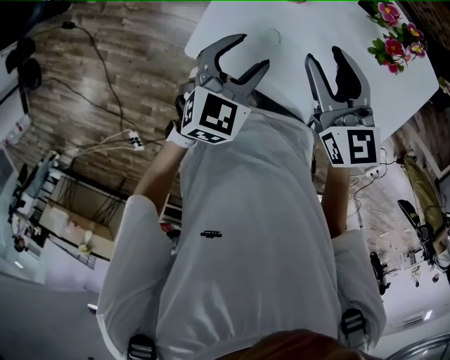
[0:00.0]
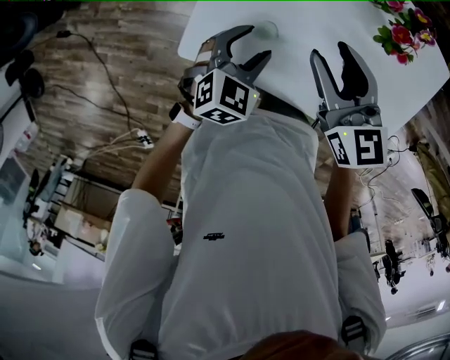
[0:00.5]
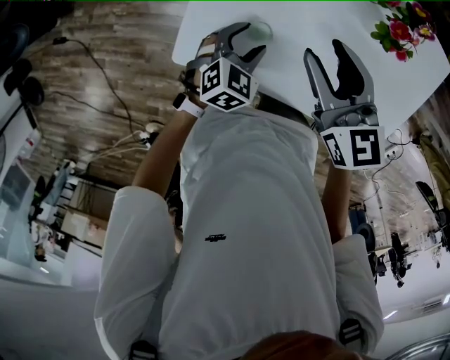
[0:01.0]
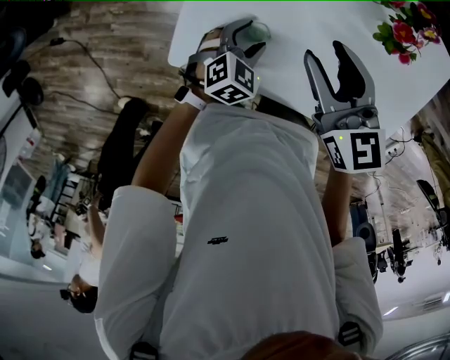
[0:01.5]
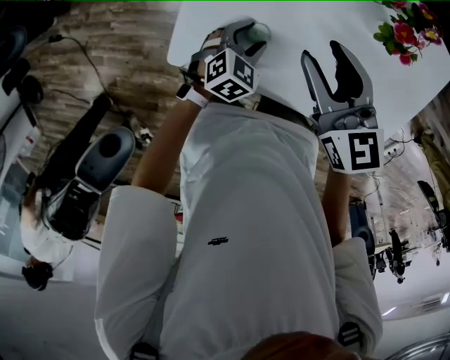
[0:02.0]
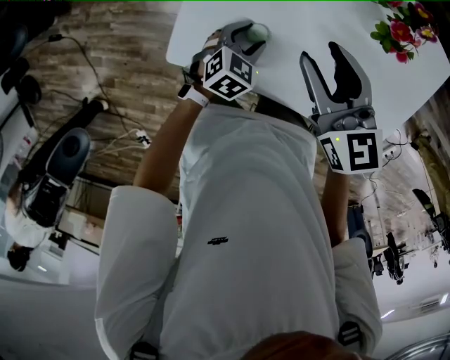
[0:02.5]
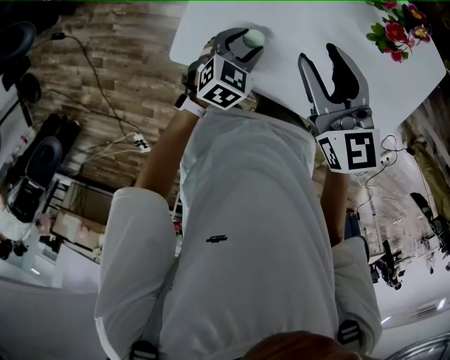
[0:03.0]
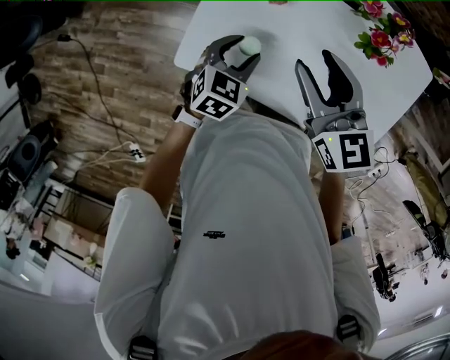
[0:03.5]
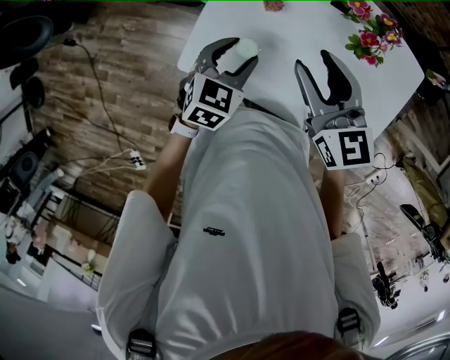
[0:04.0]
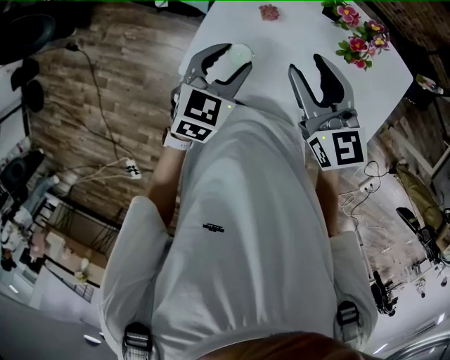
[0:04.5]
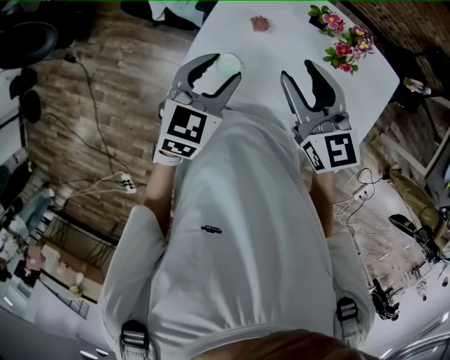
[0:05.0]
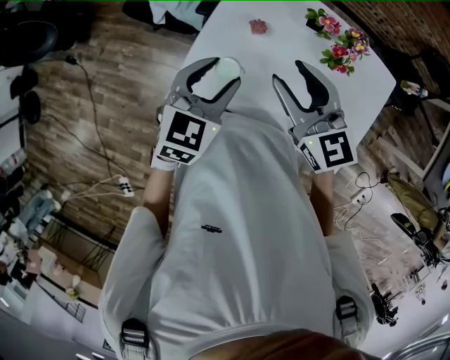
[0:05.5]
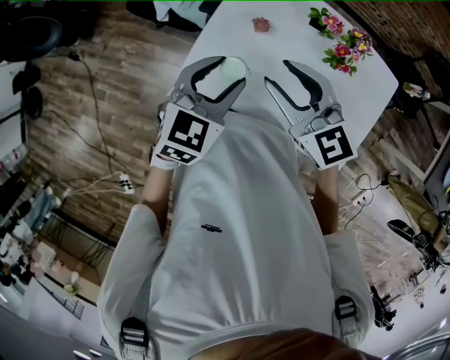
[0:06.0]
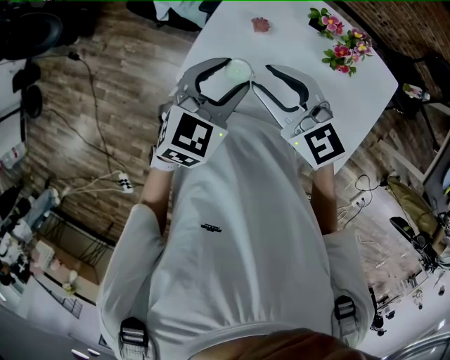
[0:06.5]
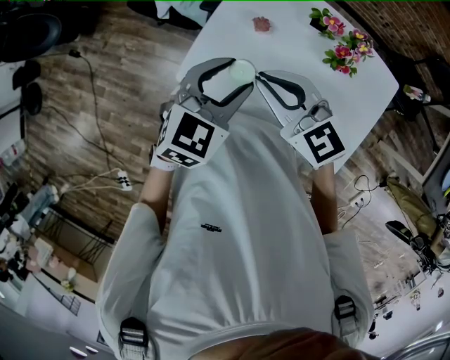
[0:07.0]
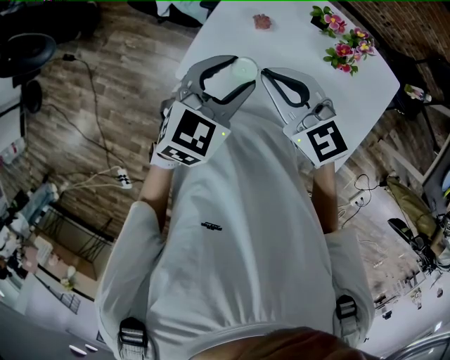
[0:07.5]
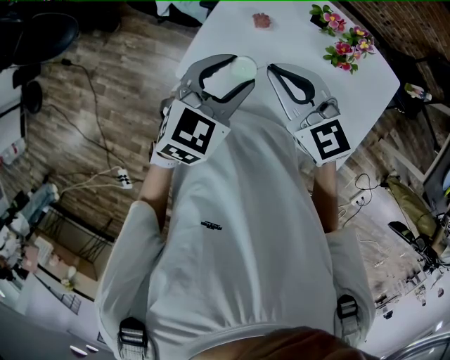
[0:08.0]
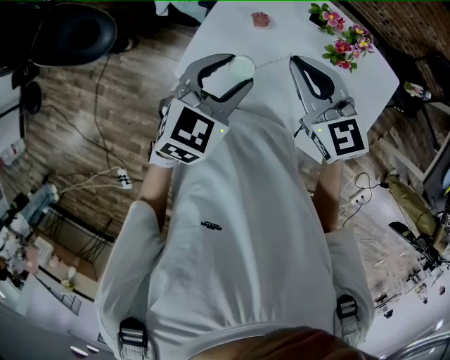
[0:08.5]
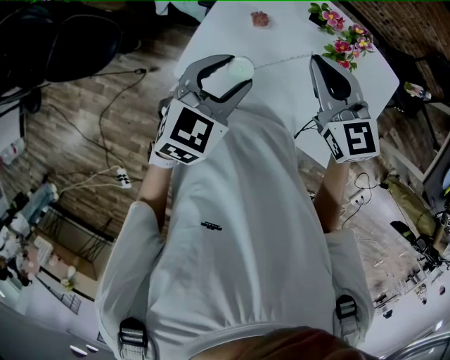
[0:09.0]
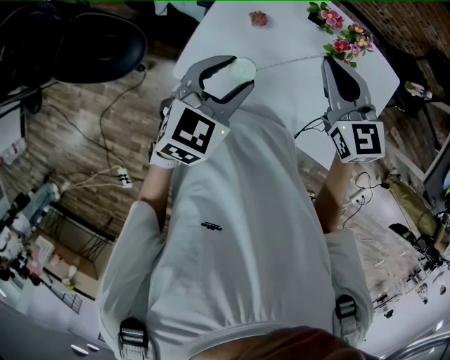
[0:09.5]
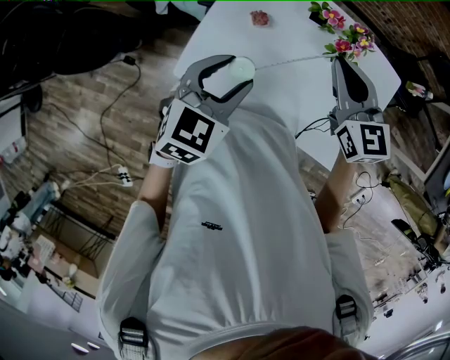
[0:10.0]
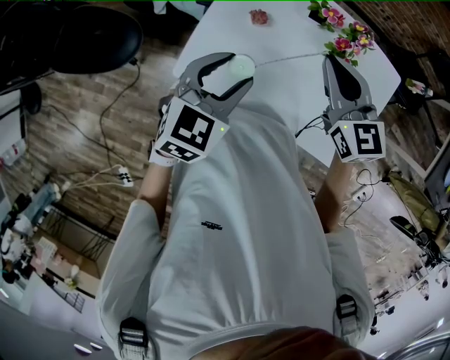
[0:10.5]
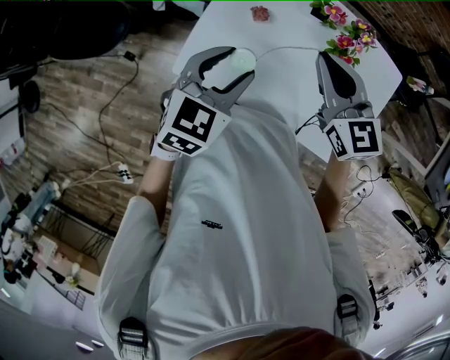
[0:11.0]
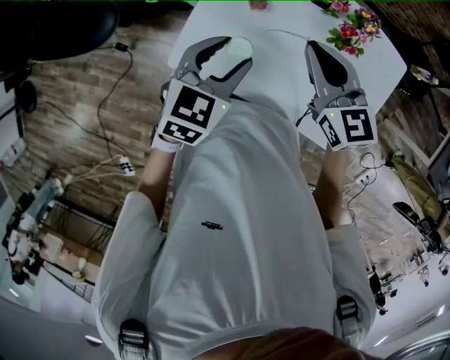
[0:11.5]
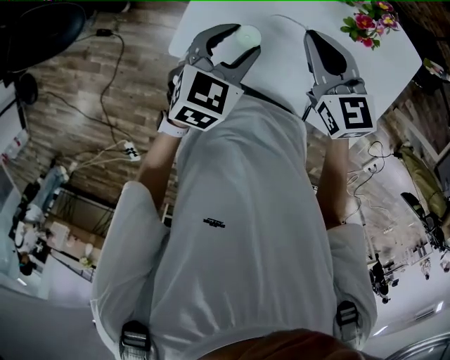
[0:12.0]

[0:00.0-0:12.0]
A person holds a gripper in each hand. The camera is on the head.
0:00.0 to 0:02.0: The left gripper travels downward by about 20 cm, and rotates approximately 20 degrees.
0:02.0 to 0:04.0: The right gripper travels upward by approximately 10 cm; the left gripper moves upward, about 15 cm, and changes its angle by about 20 degrees.
0:04.0 to 0:06.0: The right gripper moves upward and to the left, about 10 cm, and turns by some 20 degrees; the left gripper travels upward by approximately 15 cm.
0:06.0 to 0:08.0: The right gripper closes its fingers.
0:08.0 to 0:10.0: The right gripper heads to the right and forward, covering approximately 15 cm, and swivels some 20 degrees.
0:10.0 to 0:12.0: The left gripper is displaced downward by some 10 cm; the right gripper heads downward and to the left, covering about 10 cm.

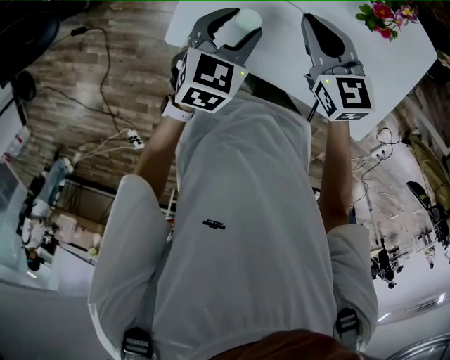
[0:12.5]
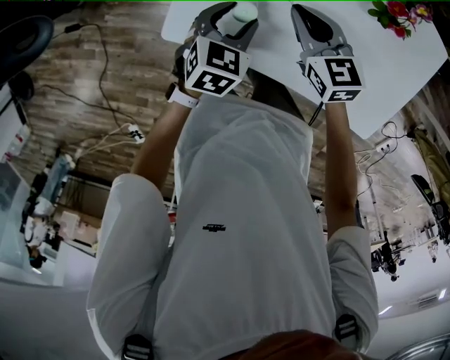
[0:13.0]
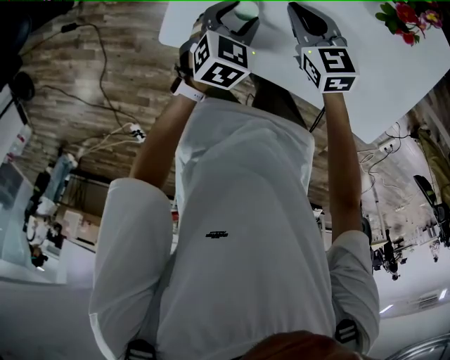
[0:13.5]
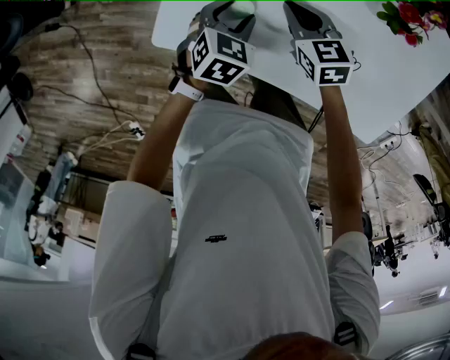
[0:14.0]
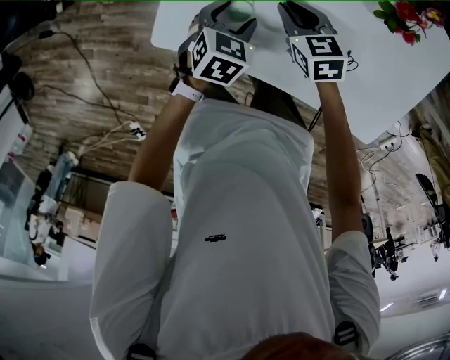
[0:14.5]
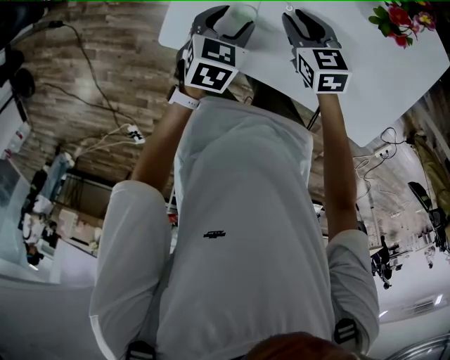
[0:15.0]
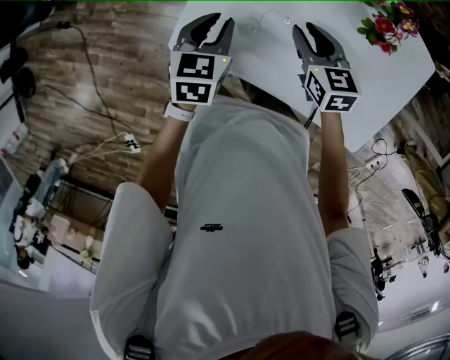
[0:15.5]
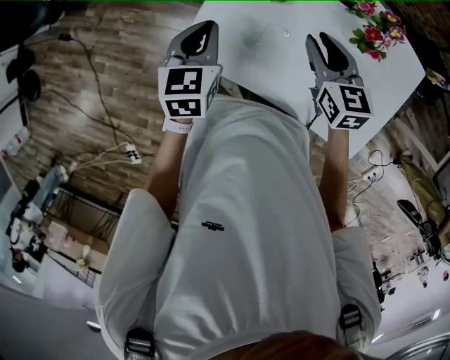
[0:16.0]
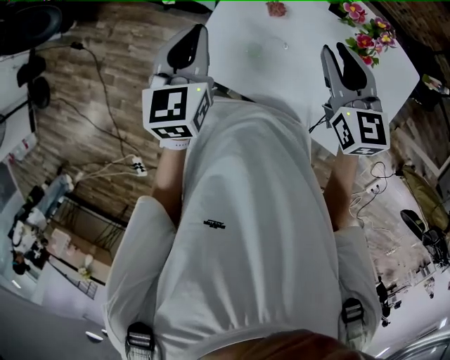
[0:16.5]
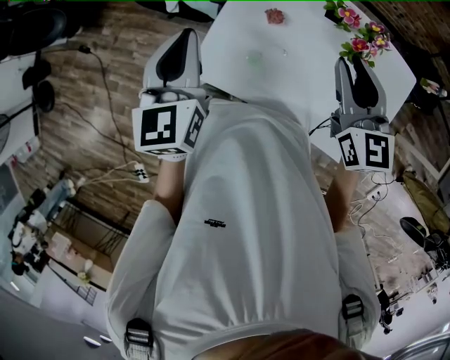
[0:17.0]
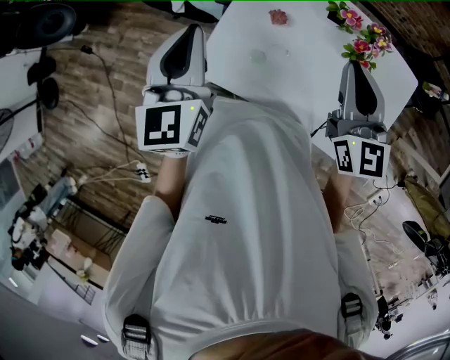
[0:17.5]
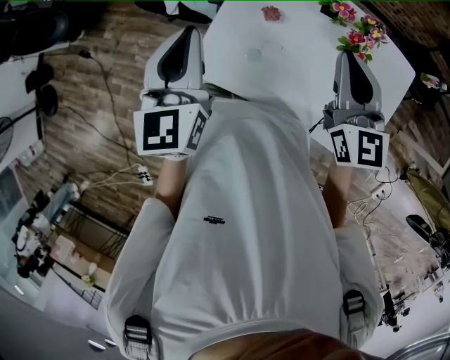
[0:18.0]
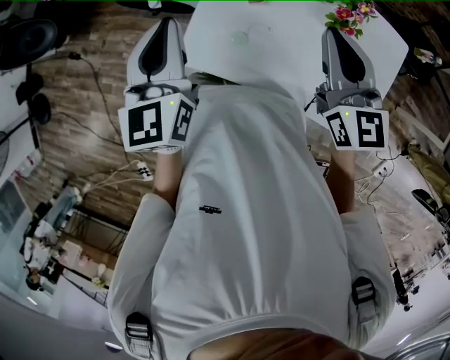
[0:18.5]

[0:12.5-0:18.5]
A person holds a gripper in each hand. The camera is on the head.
0:12.5 to 0:14.5: The two grippers go approximately 15 cm downward.
0:14.5 to 0:16.5: The two grippers go some 30 cm upward. The left gripper tips its fingers upward by approximately 30 degrees, and closes, while the right gripper turns by roughly 30 degrees.
0:16.5 to 0:18.5: Both grippers travel together upward, about 10 cm. The right gripper closes up.

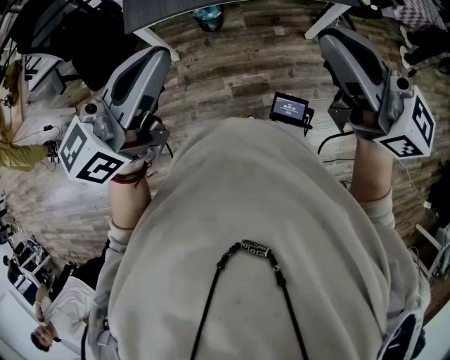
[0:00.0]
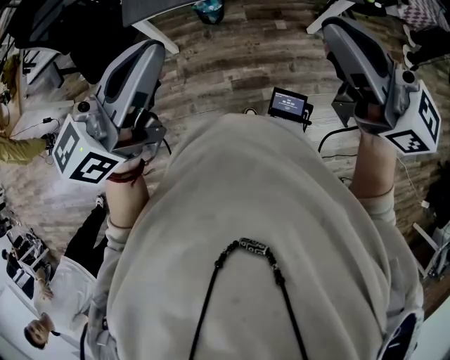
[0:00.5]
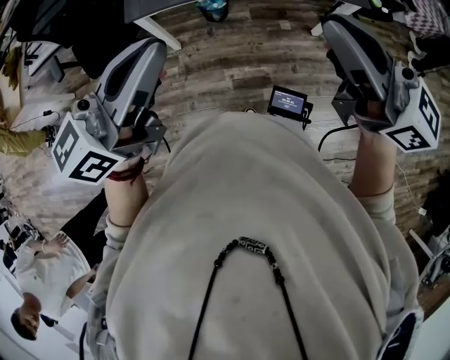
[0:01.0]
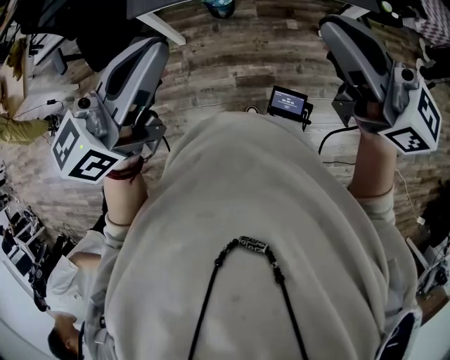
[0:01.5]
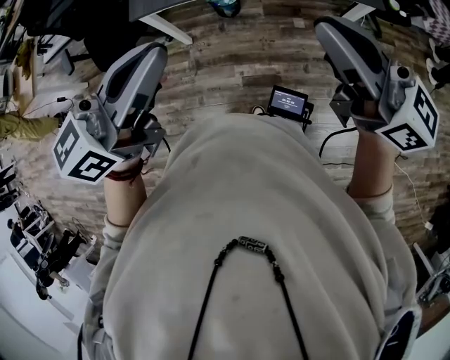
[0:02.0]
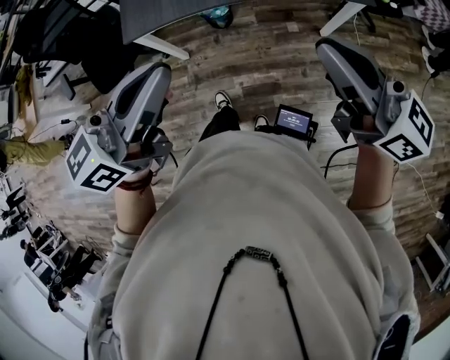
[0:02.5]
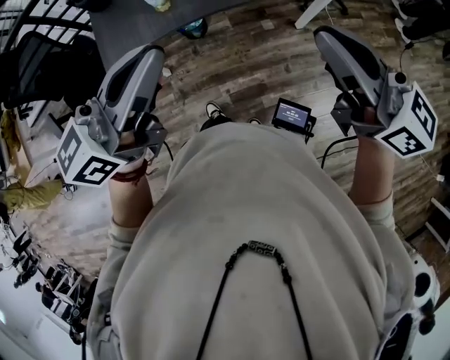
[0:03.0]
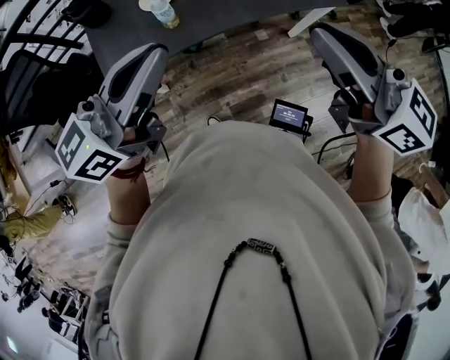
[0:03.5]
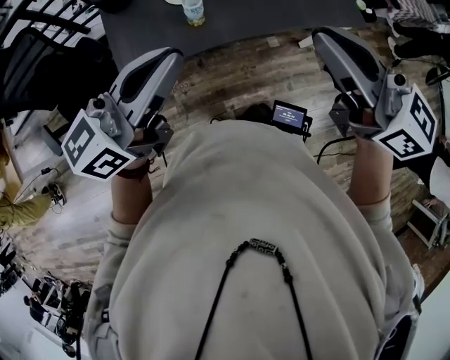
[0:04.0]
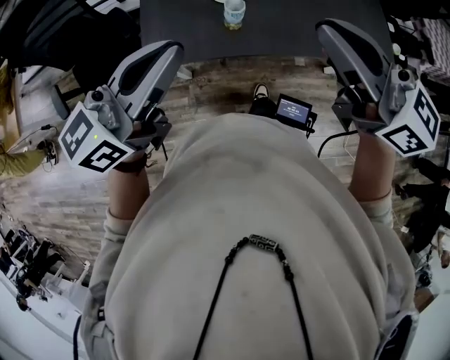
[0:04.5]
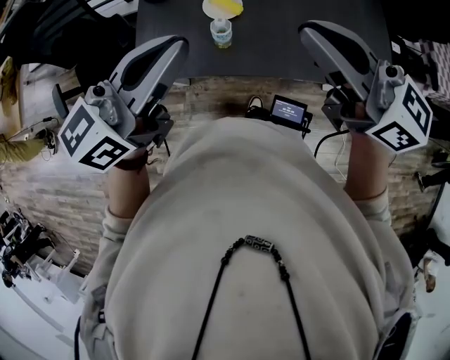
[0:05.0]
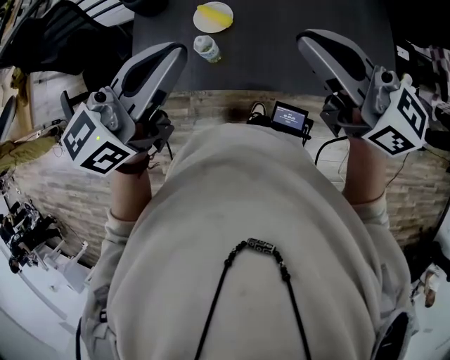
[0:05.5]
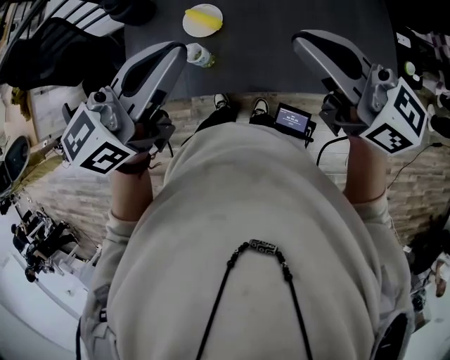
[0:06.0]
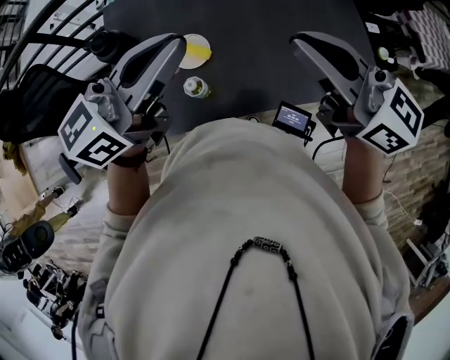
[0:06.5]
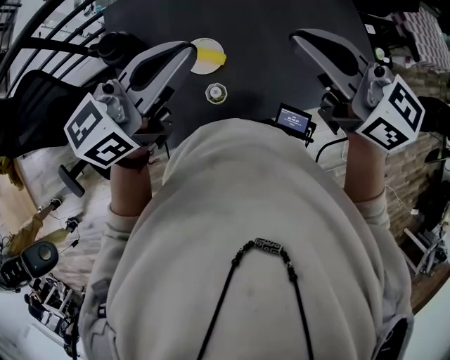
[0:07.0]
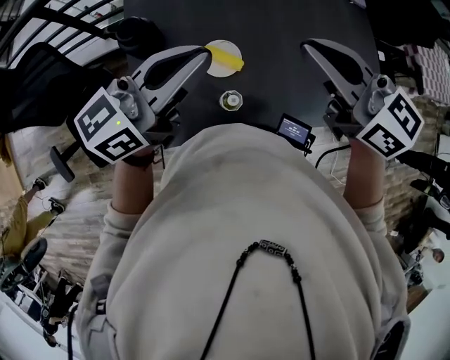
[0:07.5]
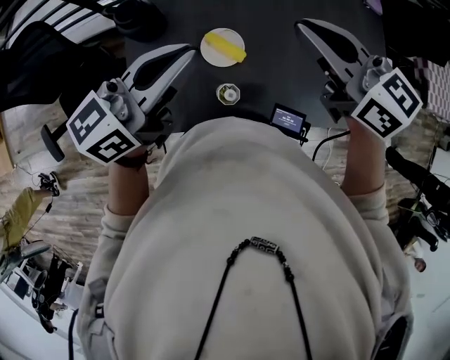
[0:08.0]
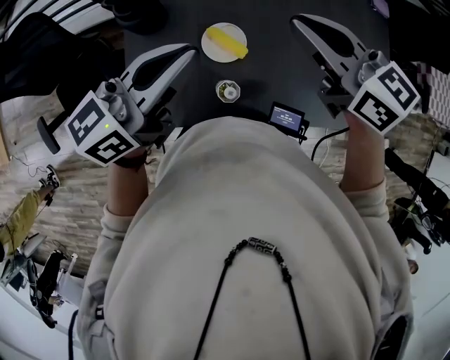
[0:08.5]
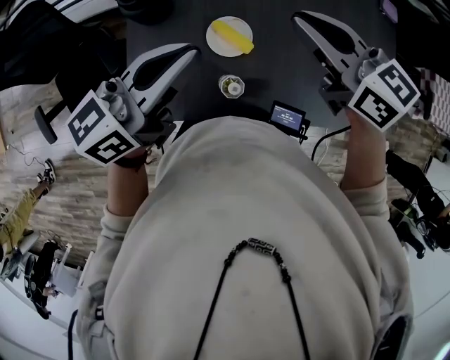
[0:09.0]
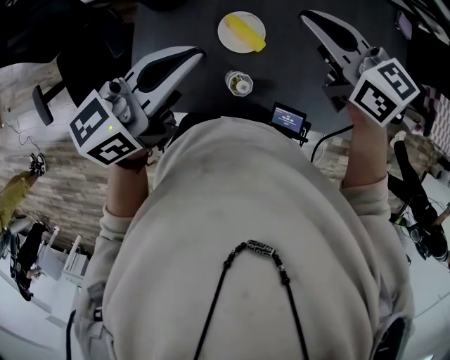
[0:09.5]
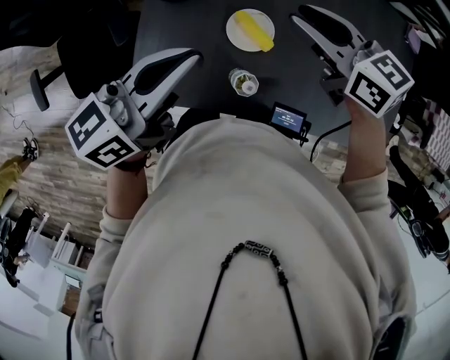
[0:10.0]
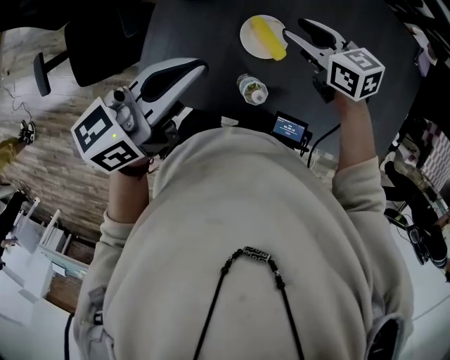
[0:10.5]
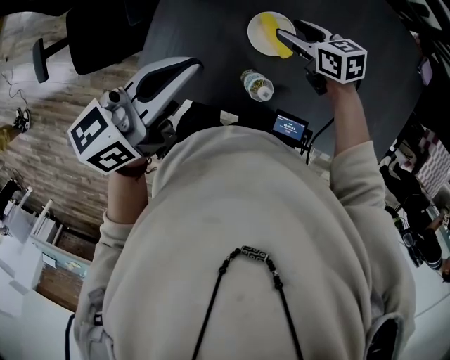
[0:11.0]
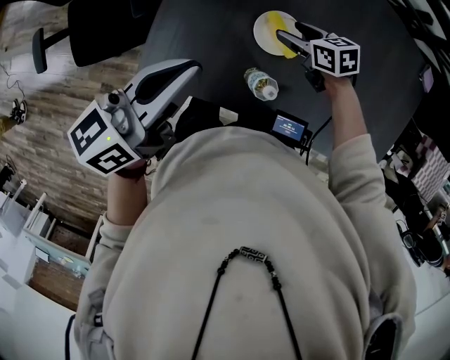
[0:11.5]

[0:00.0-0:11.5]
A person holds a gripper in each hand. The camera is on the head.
0:00.0 to 0:02.0: The grippers both shift to the right by about 5 cm.
0:02.0 to 0:04.0: The two grippers go some 25 cm forward and to the left.
0:04.0 to 0:06.0: The left gripper is displaced forward and to the right by some 20 cm. Meanwhile the right gripper goes roughly 20 cm forward, and rotates approximately 20 degrees.
0:06.0 to 0:07.5: Both grippers move to the left, approximately 5 cm. The right gripper rotates approximately 20 degrees.
0:07.5 to 0:09.5: The right gripper travels downward by approximately 15 cm, and turns by some 20 degrees. The left gripper heads downward and to the left, covering approximately 15 cm.
0:09.5 to 0:11.5: The left gripper goes roughly 10 cm to the left. The right gripper heads downward, covering approximately 25 cm, swivels approximately 30 degrees, and opens its fingers.
